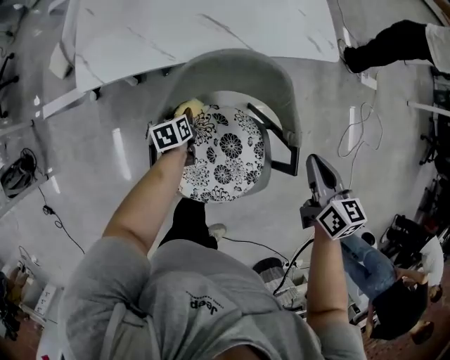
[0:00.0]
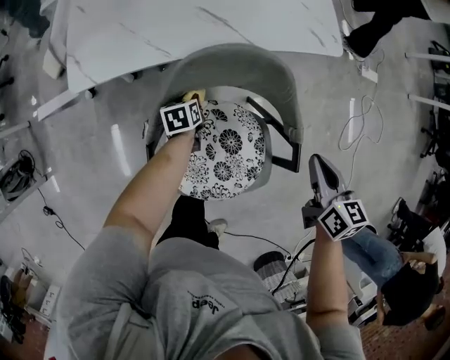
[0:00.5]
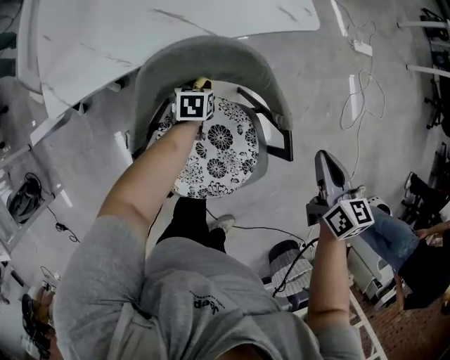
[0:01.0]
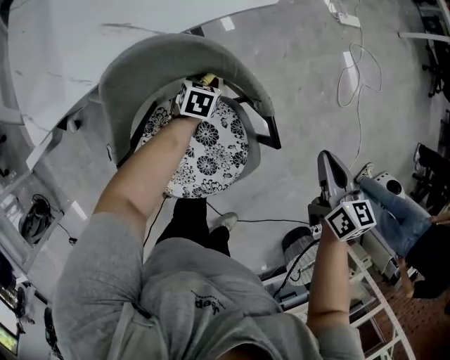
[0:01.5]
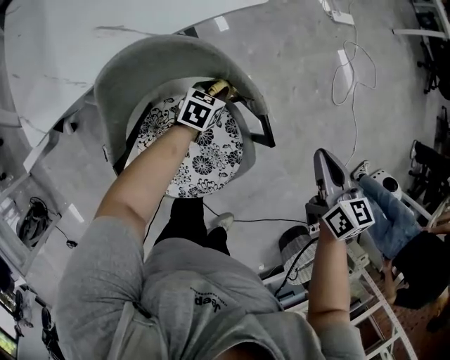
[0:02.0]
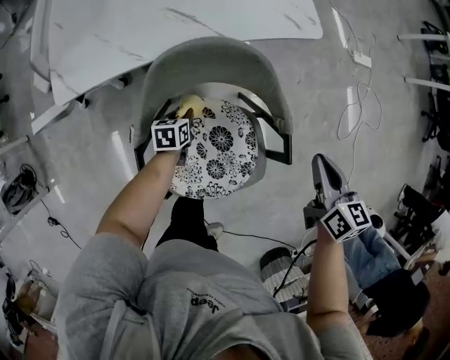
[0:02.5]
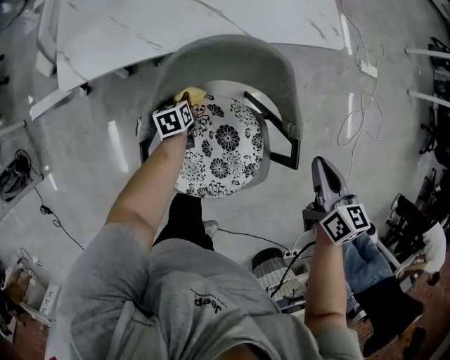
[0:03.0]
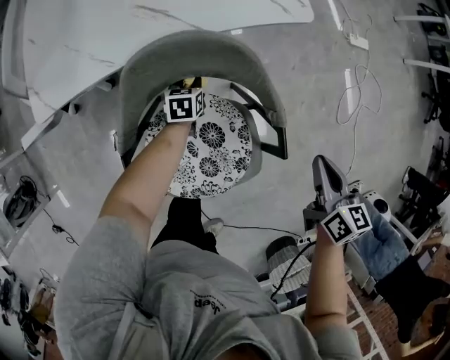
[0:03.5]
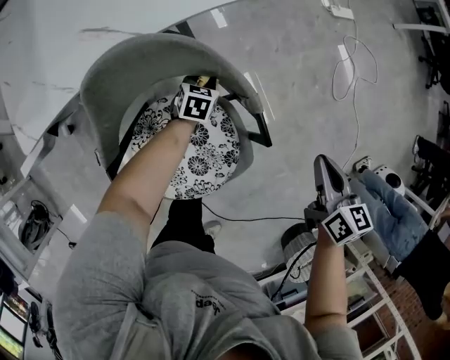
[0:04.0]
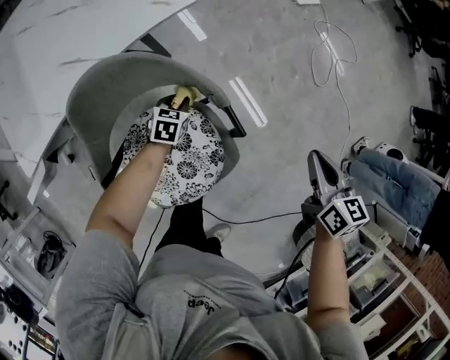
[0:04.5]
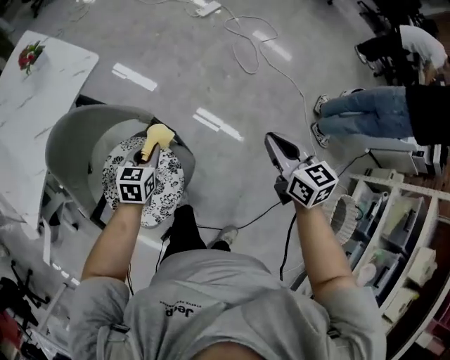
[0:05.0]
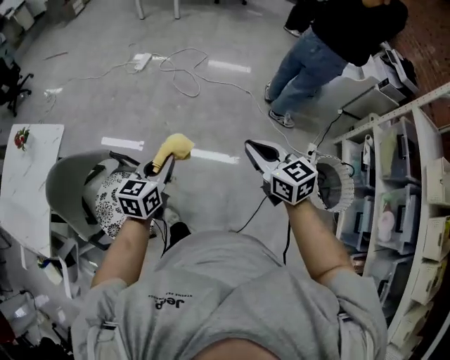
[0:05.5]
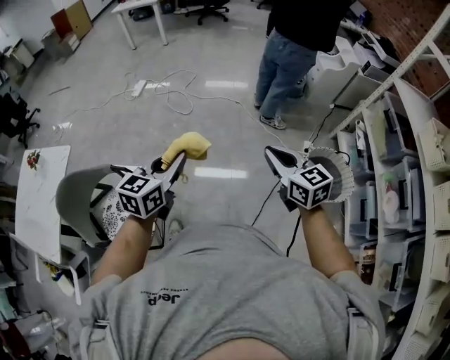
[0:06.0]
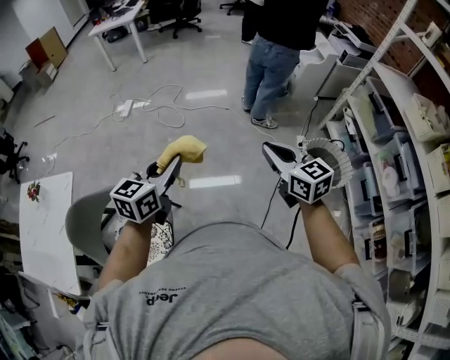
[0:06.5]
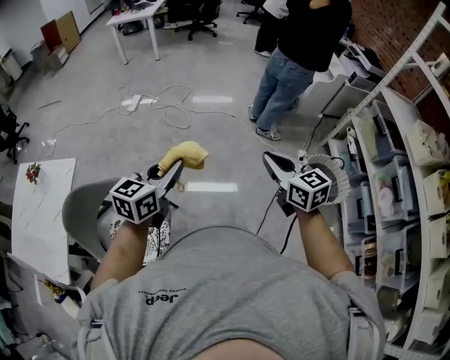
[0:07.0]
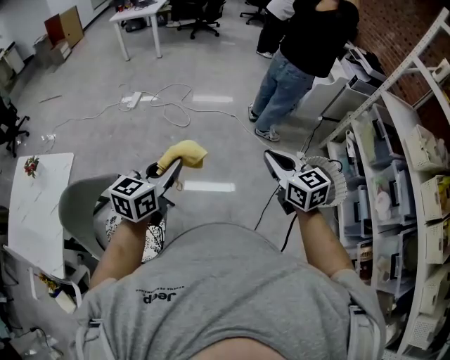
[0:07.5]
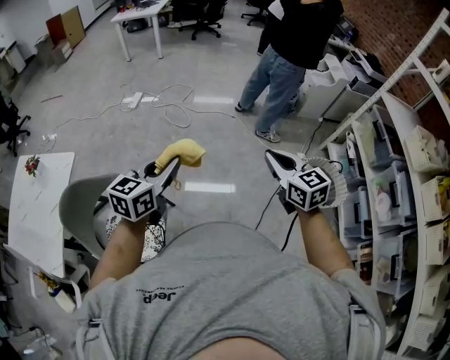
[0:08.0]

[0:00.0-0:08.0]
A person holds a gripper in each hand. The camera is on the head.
0:00.0 to 0:02.0: The left gripper moves approximately 30 cm, and rotates around the line of its fingers by roughly 50 degrees, clockwise from behind. Meanwhile the right gripper shifts by some 15 cm.
0:04.0 to 0:06.0: The pair of grippers is taken approximately 70 cm. The left gripper tilts its fingers roughly 30 degrees upward; the right gripper rotates about 40 degrees.
0:06.0 to 0:08.0: Both grippers travel together to the left, some 10 cm.

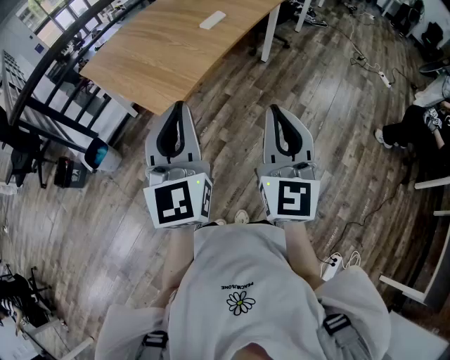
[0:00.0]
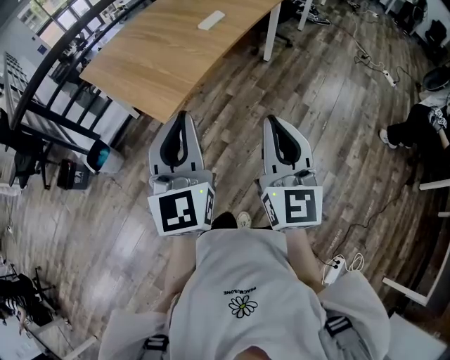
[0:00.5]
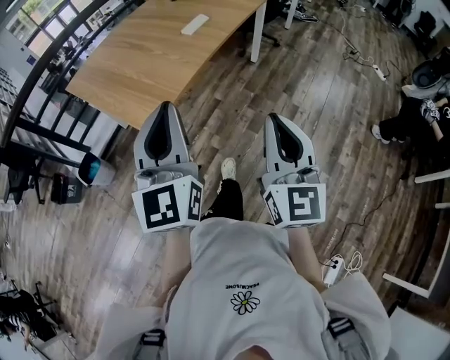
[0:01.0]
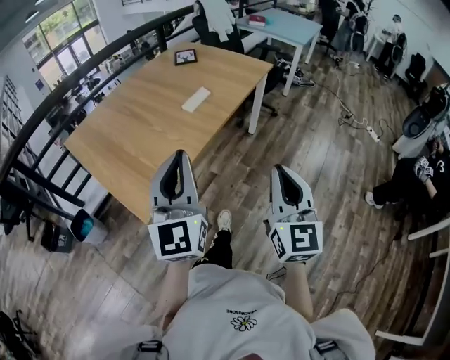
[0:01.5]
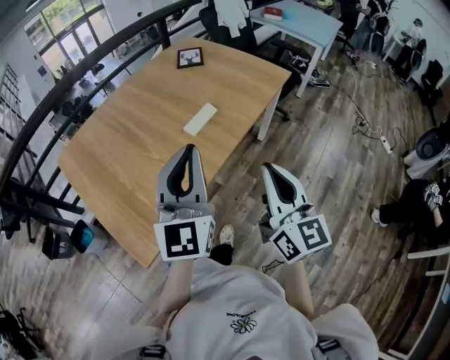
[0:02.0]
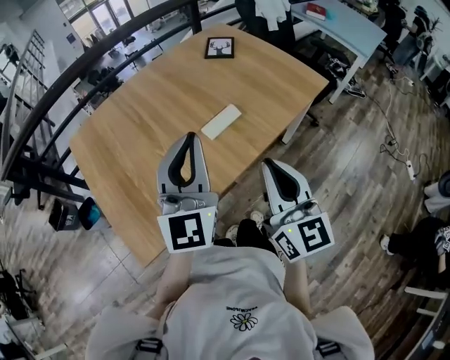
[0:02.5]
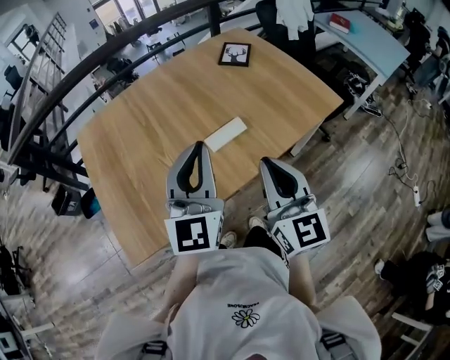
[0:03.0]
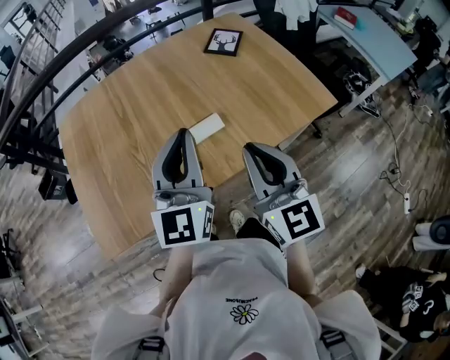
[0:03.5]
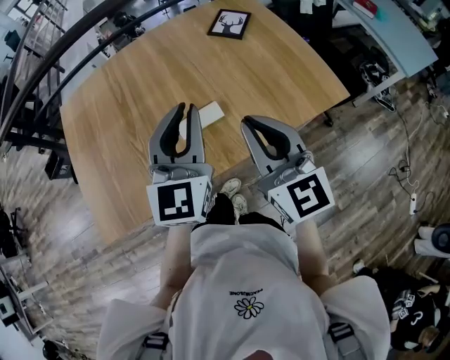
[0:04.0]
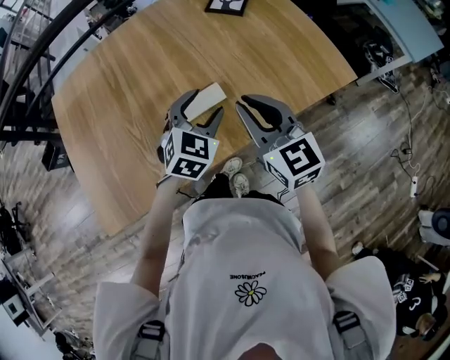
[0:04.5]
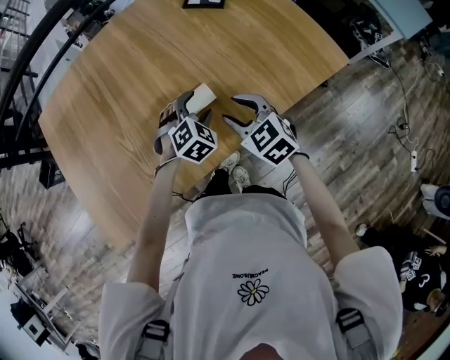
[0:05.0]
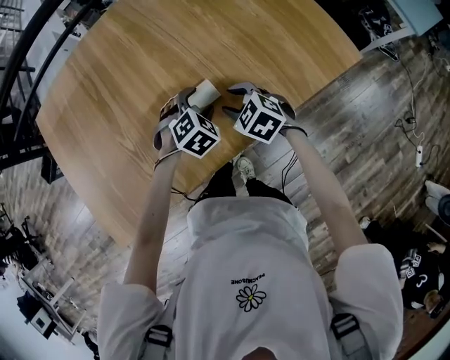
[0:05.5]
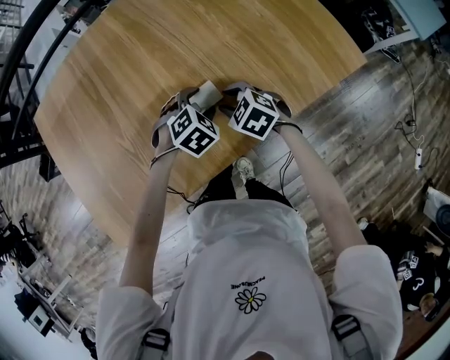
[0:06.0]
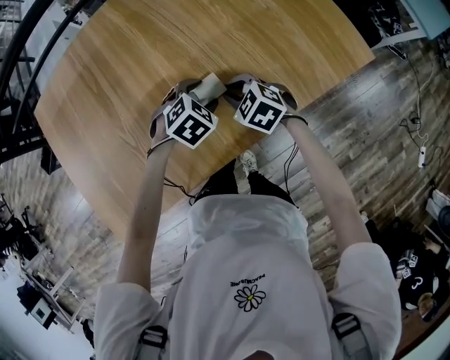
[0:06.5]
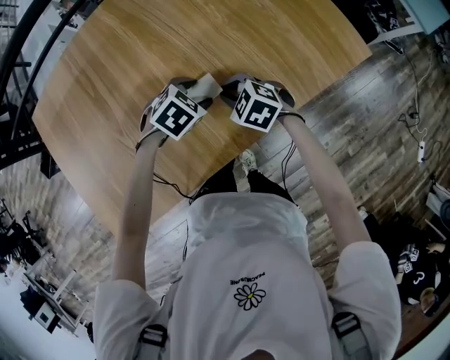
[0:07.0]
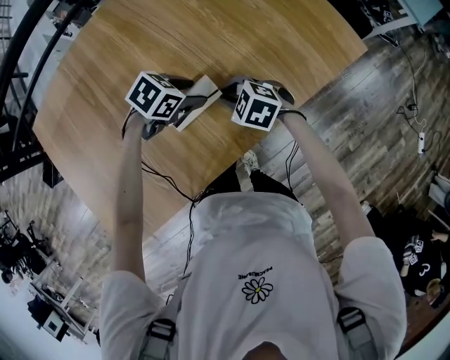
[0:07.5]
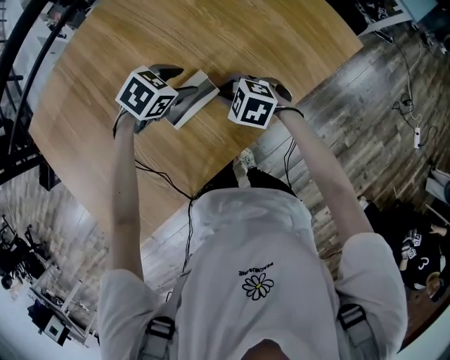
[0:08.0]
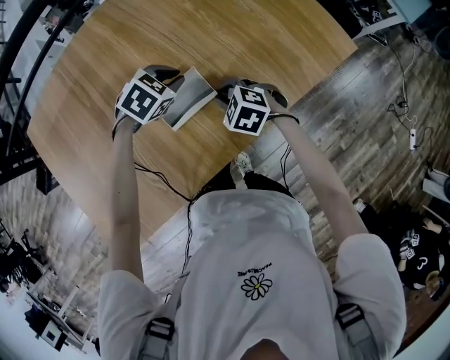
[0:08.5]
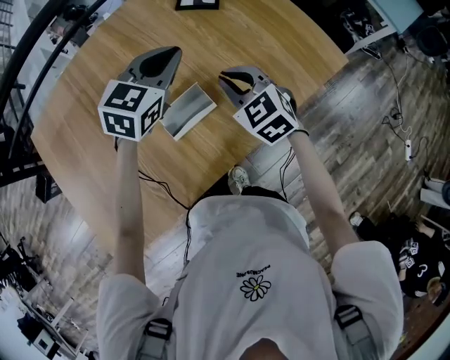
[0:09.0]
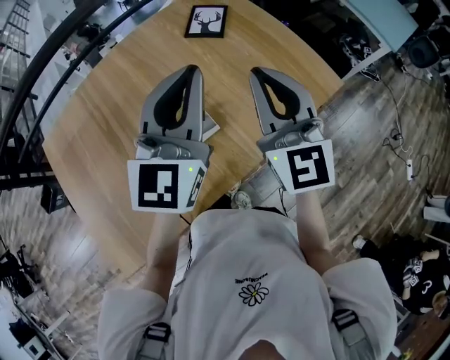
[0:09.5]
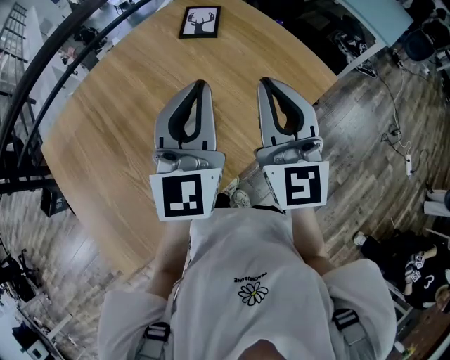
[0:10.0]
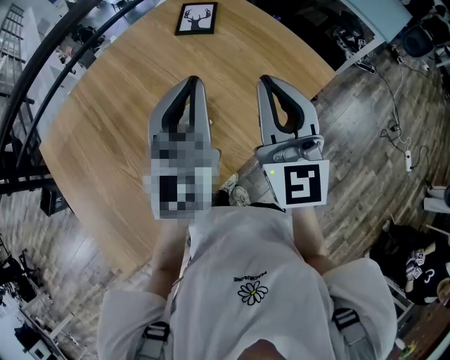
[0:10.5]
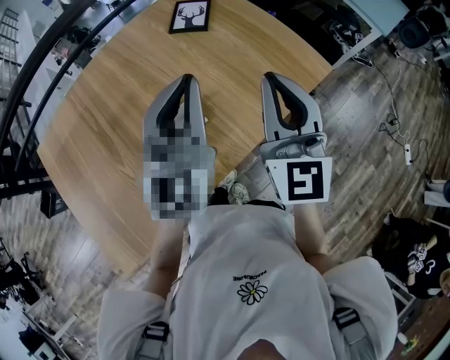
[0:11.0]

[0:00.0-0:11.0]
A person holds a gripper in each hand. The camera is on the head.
0:00.0 to 0:02.0: Both grippers move forward, some 40 cm. The right gripper changes its angle by roughly 30 degrees.
0:02.0 to 0:03.5: The right gripper moves some 25 cm, and swivels approximately 30 degrees. The left gripper changes place by about 20 cm, and changes its angle by some 20 degrees.
0:03.5 to 0:05.5: The right gripper heads downward and forward, covering approximately 35 cm, angles its fingers downward, by approximately 50 degrees, and opens up; the left gripper travels downward by some 35 cm, angles its fingers downward, by some 70 degrees, and opens its fingers.
0:05.5 to 0:07.5: The left gripper rotates about 40 degrees. The right gripper closes.
0:07.5 to 0:09.0: Both grippers travel together upward, roughly 15 cm. The left gripper points its fingers approximately 30 degrees further upward, and closes its fingers, while the right gripper rotates approximately 30 degrees.
0:09.0 to 0:11.0: The right gripper is displaced upward and to the right by some 25 cm, and angles its fingers upward, by about 40 degrees, while the left gripper is displaced upward, backward and to the right by approximately 20 cm, and tips its fingers upward by approximately 30 degrees.

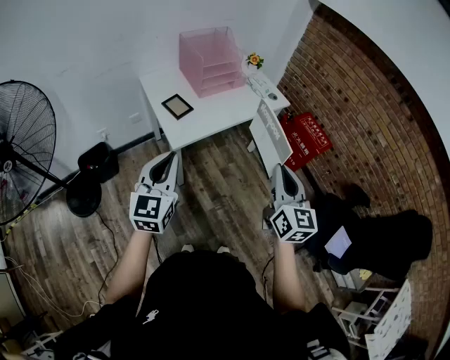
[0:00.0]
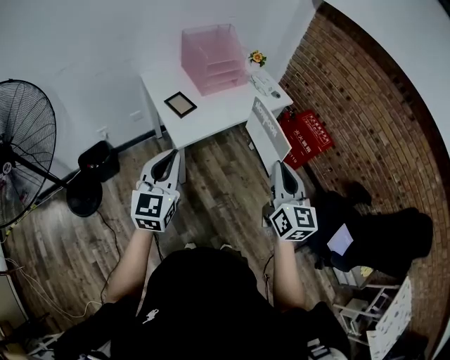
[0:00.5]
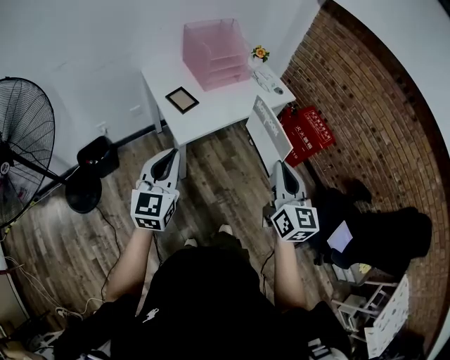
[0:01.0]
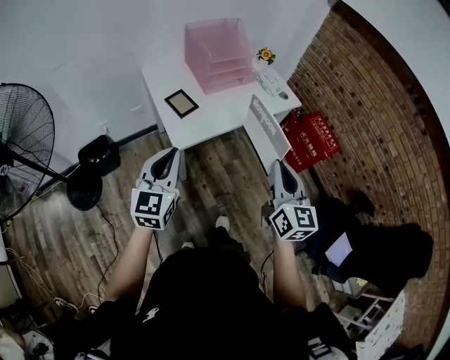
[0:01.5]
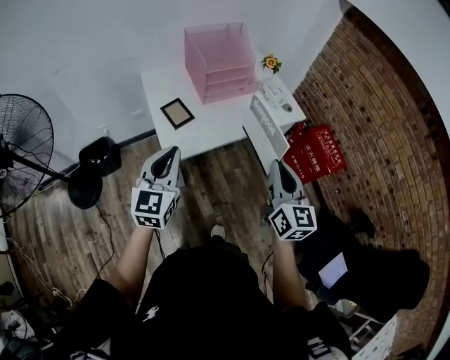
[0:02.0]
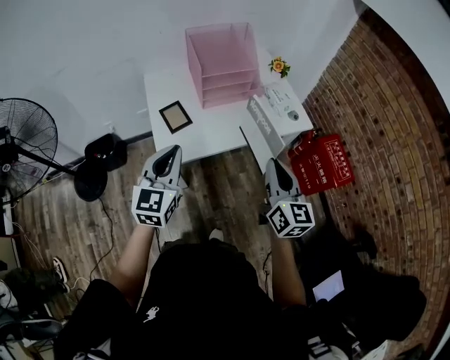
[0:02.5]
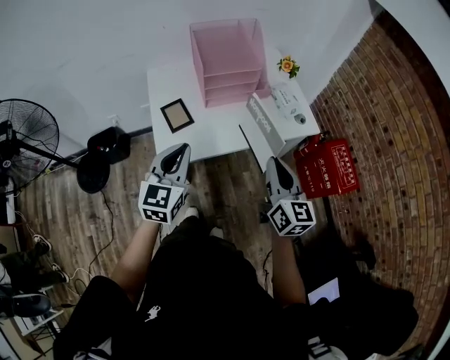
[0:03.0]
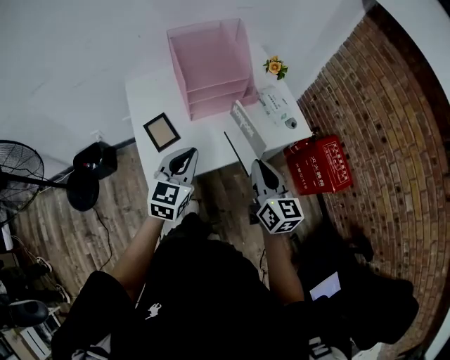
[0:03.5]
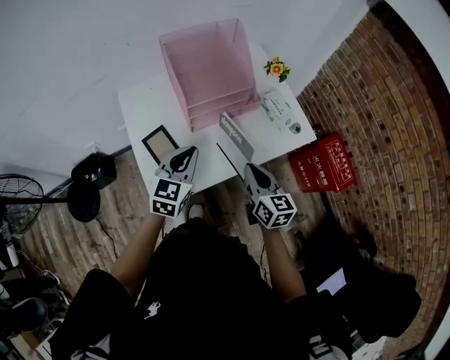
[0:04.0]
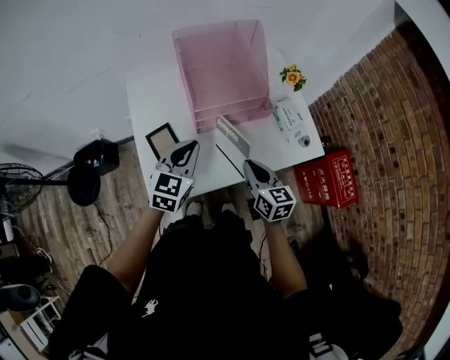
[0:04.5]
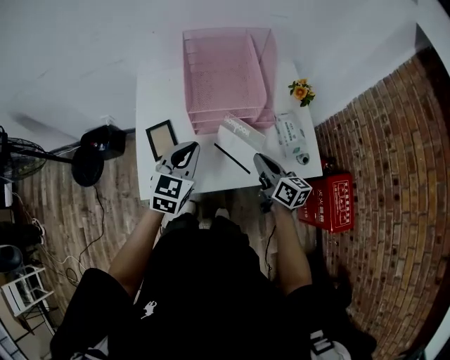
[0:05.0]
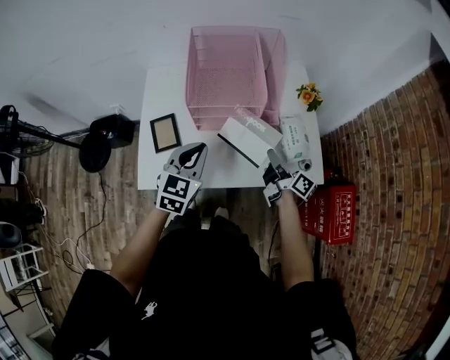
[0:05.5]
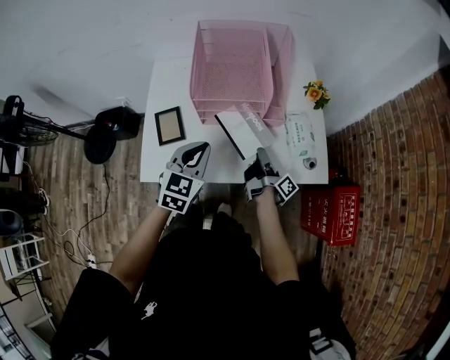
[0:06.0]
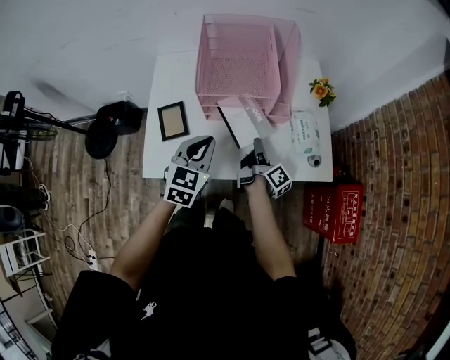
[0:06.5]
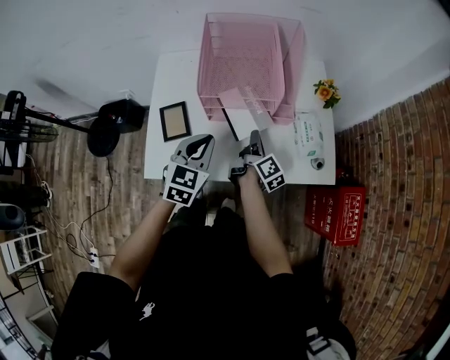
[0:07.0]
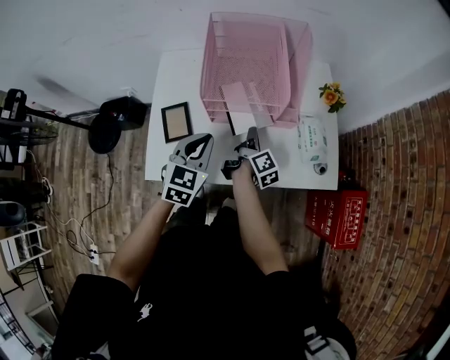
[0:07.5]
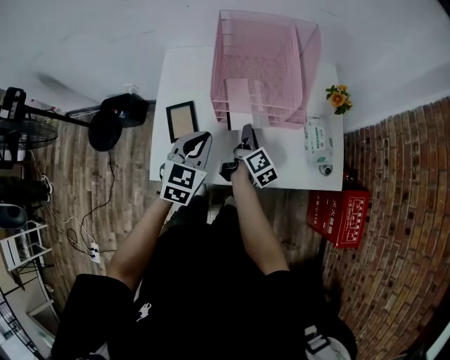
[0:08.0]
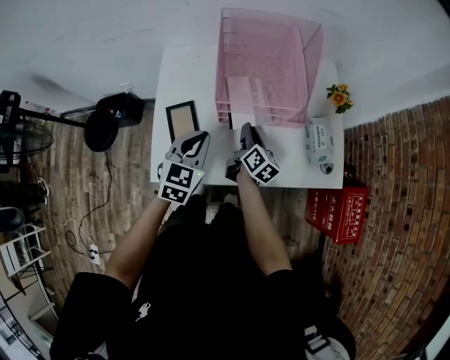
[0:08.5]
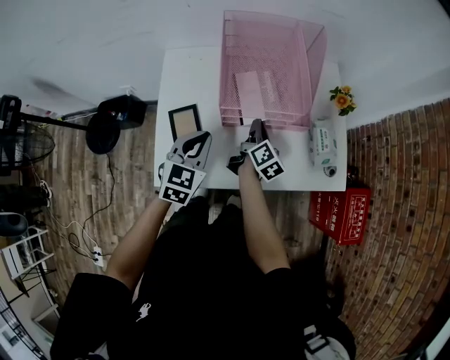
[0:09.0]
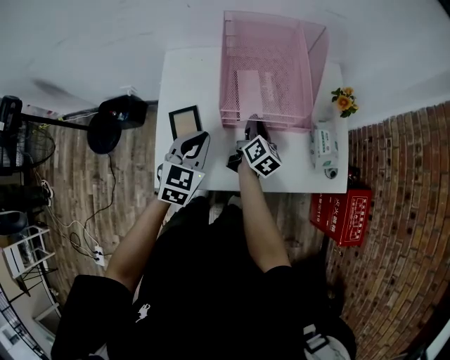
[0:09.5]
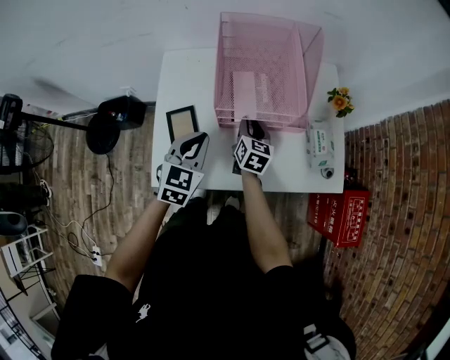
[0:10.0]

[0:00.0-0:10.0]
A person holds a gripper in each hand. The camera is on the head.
0:00.0 to 0:02.0: The grippers both shift forward by some 15 cm.
0:02.0 to 0:04.0: Both grippers move forward and downward, about 30 cm. The right gripper turns by roughly 20 degrees.
0:04.0 to 0:06.0: The left gripper shifts approximately 5 cm to the right, and turns by about 20 degrees; the right gripper heads forward, downward and to the right, covering about 20 cm, and rolls clockwise, seen from behind, by about 70 degrees.
0:06.0 to 0:08.0: The right gripper goes roughly 15 cm to the left and forward, and swivels about 30 degrees; the left gripper moves to the left, about 5 cm.
0:08.0 to 0:10.0: The right gripper twists roughly 50 degrees counterclockwise, seen from behind.
